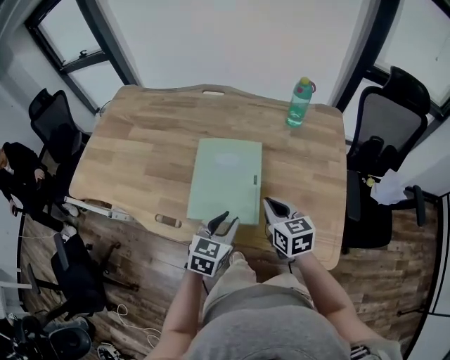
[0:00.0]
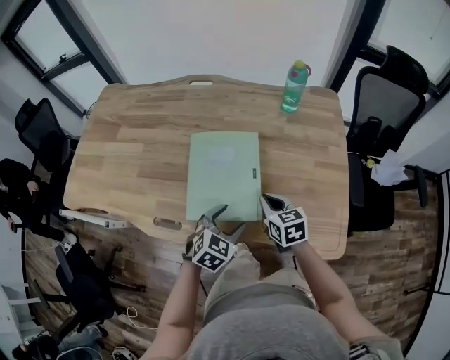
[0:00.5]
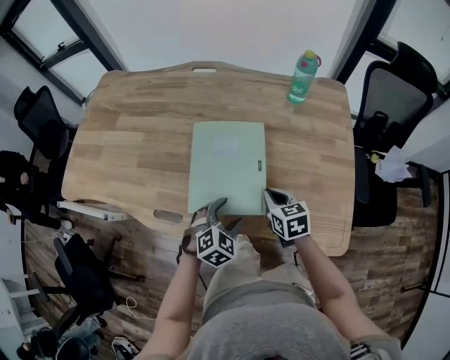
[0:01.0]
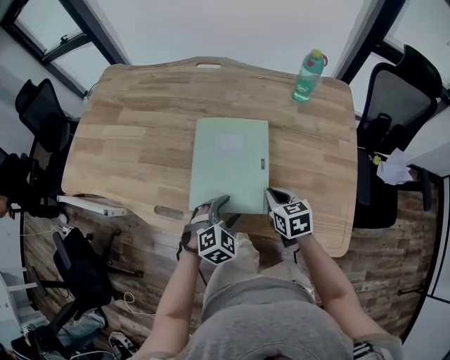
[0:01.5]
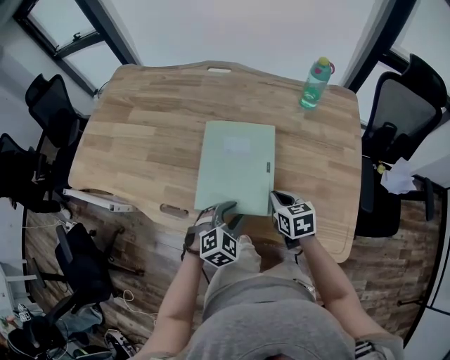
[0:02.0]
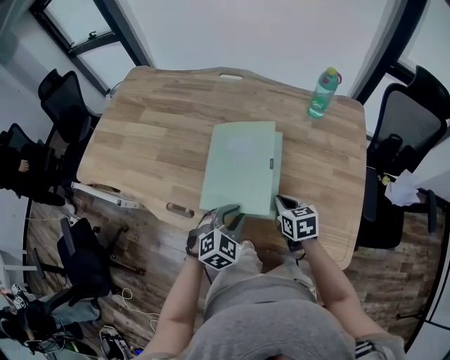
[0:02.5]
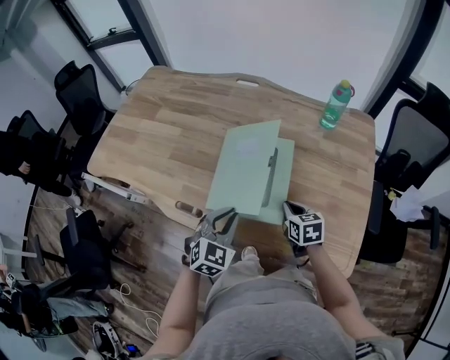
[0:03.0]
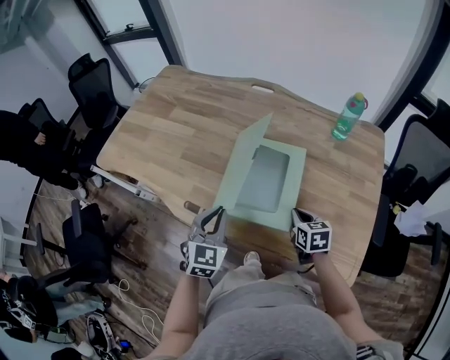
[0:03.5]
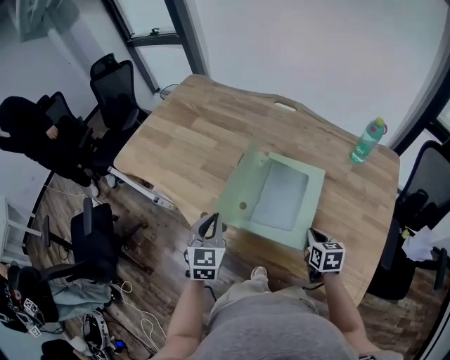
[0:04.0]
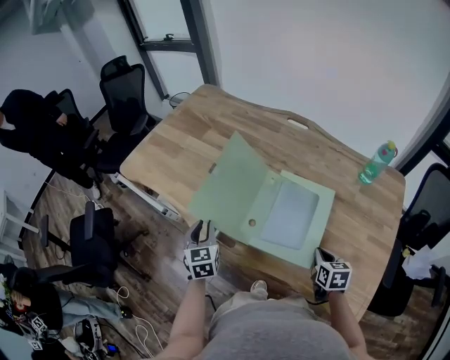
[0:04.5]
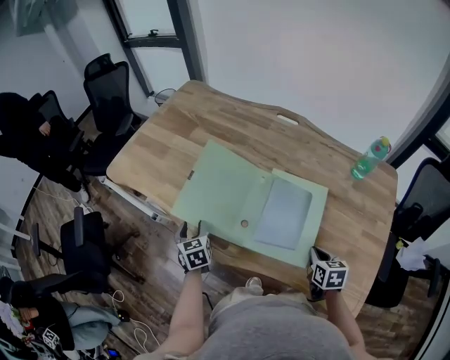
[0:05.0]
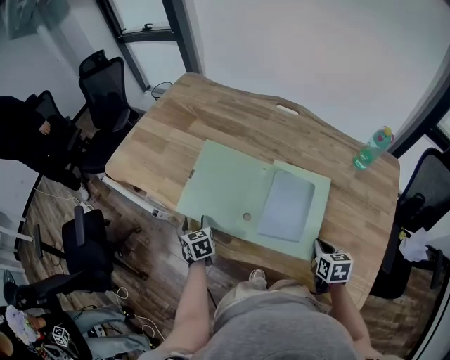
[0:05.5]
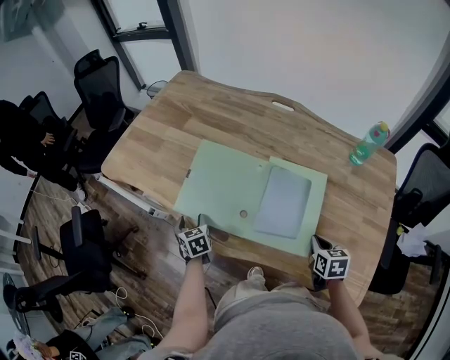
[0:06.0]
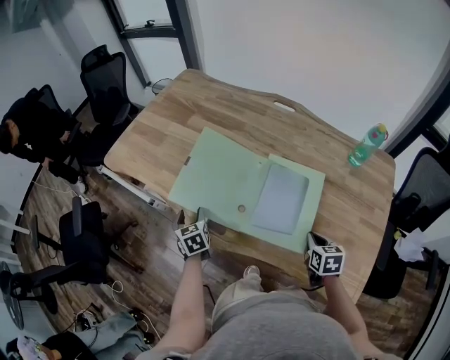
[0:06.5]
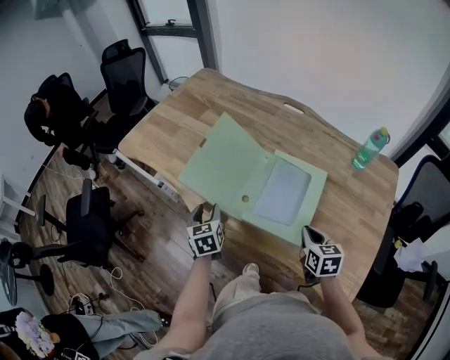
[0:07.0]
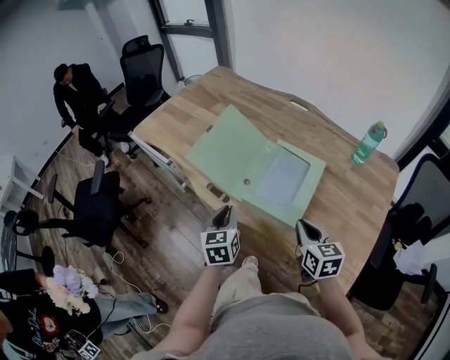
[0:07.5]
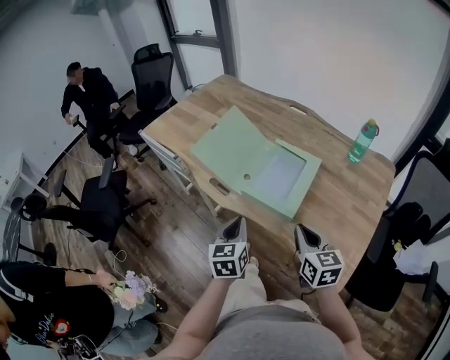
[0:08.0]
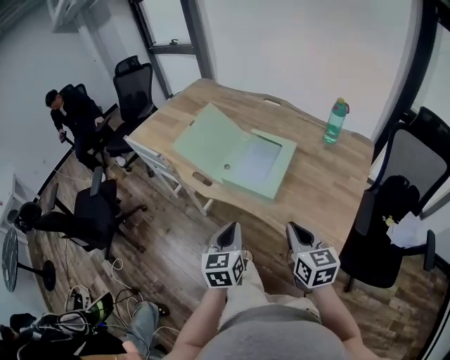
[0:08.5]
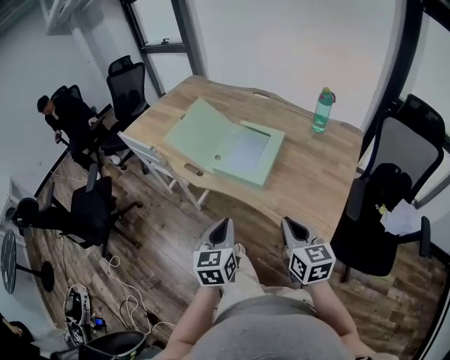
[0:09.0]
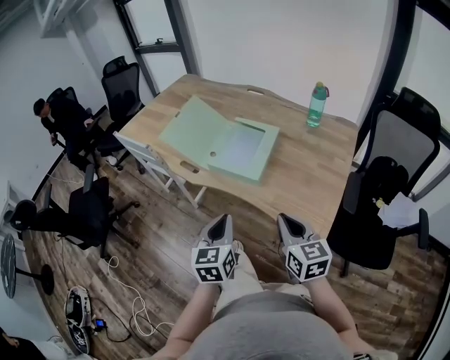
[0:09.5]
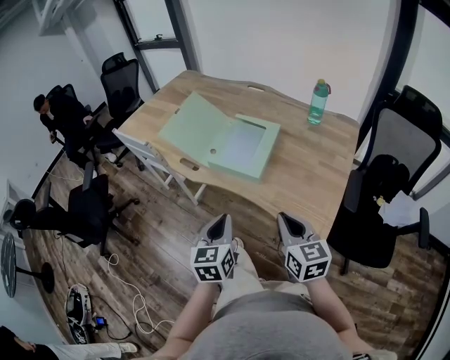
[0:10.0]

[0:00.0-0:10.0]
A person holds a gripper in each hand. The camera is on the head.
0:00.0 to 0:02.0: The two grippers go some 10 cm downward. The left gripper rotates approximately 40 degrees, and opens, then closes again.
0:02.0 to 0:04.0: The left gripper shifts about 20 cm to the left and upward, turns by some 60 degrees, and closes.
0:04.0 to 0:06.0: The left gripper shifts about 25 cm downward, to the left and forward, swivels about 40 degrees, and opens.
0:06.0 to 0:08.0: The right gripper shifts about 20 cm upward, backward and to the left, and changes its angle by roughly 30 degrees. Meanwhile the left gripper shifts some 40 cm backward, upward and to the right, turns by some 30 degrees, and closes its fingers.
0:08.0 to 0:10.0: The right gripper travels backward by approximately 15 cm, while the left gripper moves backward and to the right, some 15 cm.

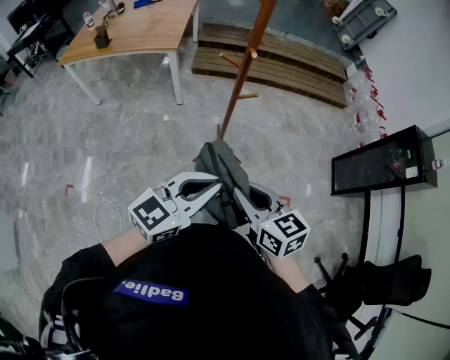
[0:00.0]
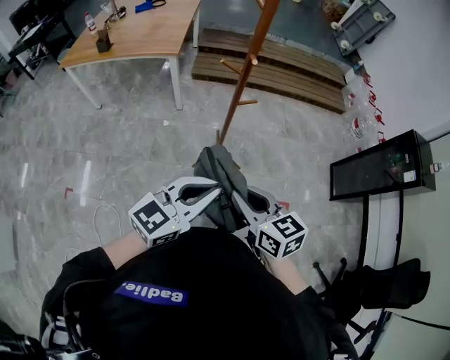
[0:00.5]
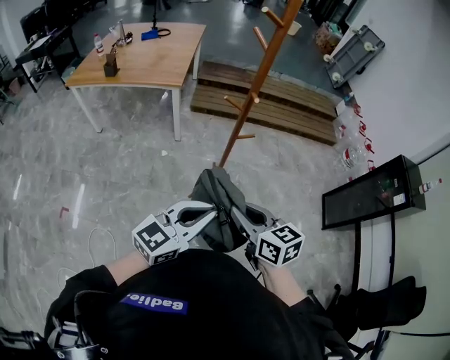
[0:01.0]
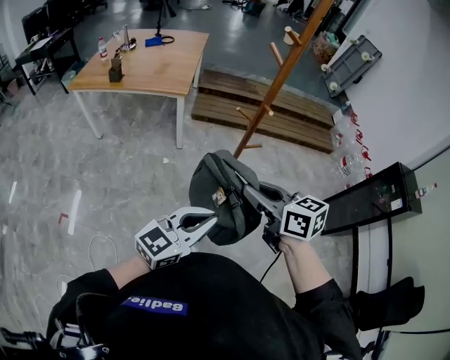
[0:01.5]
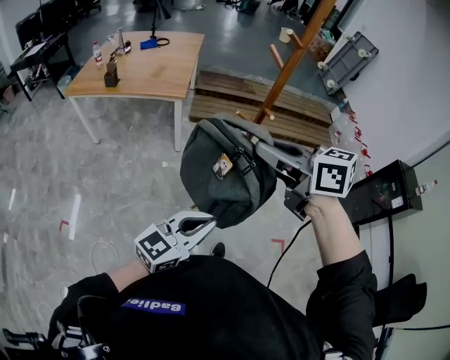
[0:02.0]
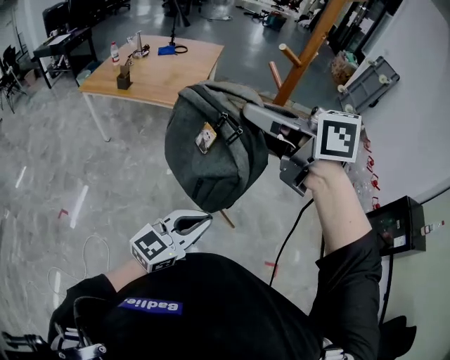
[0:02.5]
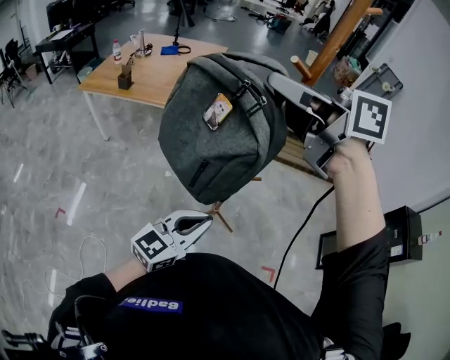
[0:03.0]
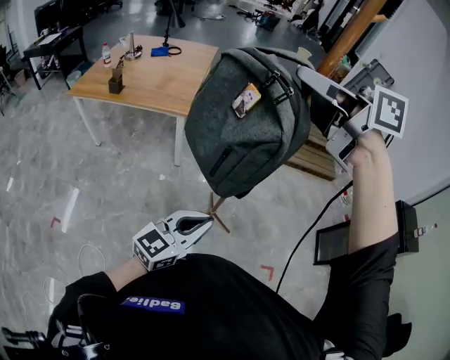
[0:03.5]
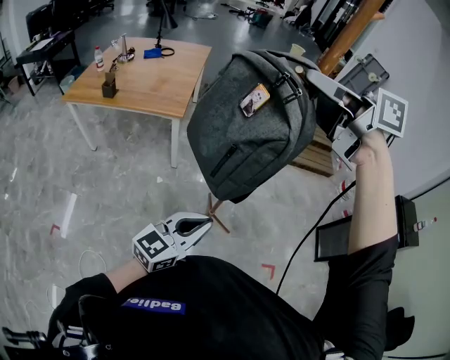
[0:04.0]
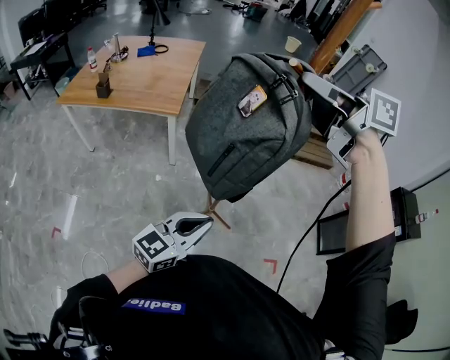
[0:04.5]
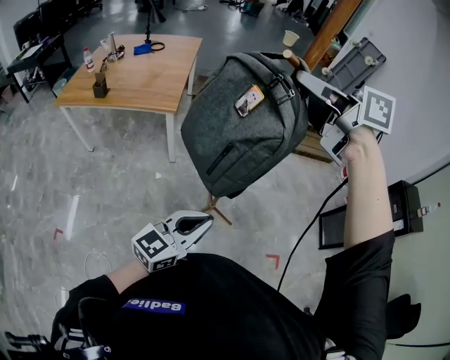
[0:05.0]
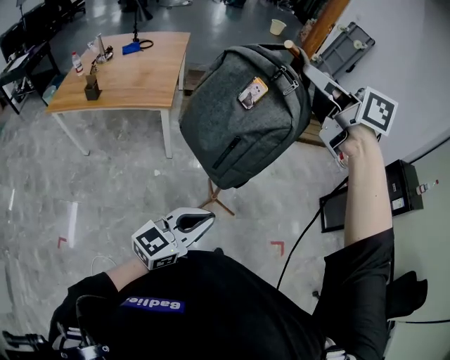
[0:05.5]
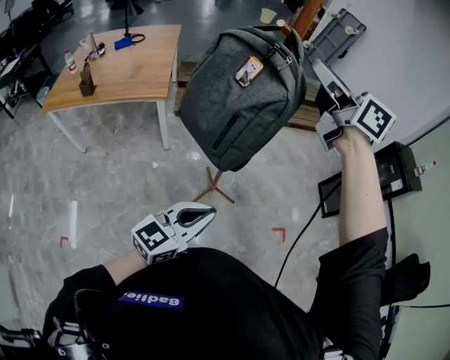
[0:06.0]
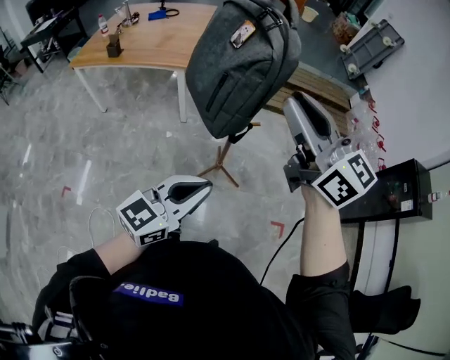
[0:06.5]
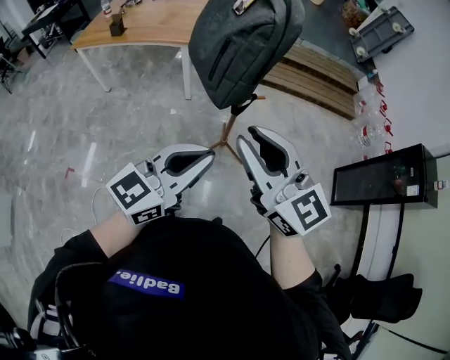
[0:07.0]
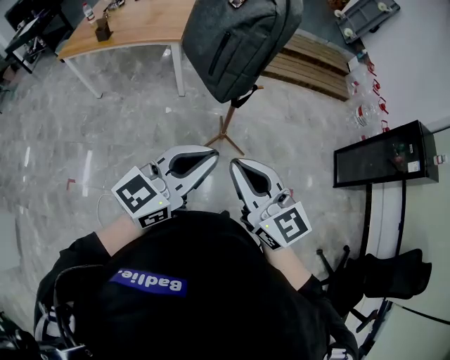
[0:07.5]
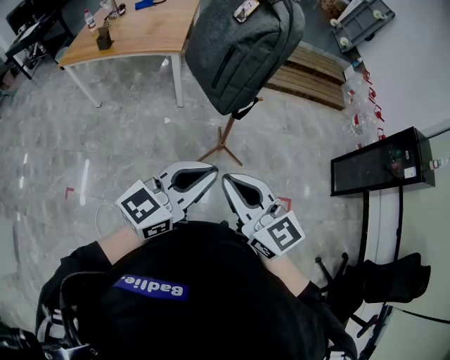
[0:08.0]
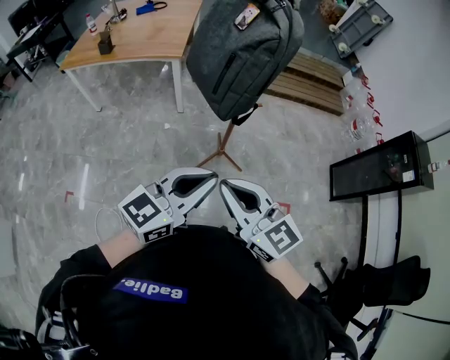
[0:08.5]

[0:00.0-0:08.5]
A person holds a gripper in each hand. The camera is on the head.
0:00.0 to 0:02.0: The left gripper heads to the left, covering some 10 cm. Meanwhile the right gripper travels upward, forward and to the left by roughly 25 cm.
0:02.0 to 0:04.0: The right gripper heads forward, upward and to the right, covering about 25 cm. The left gripper travels forward by some 15 cm.
0:04.0 to 0:06.5: The left gripper moves backward, about 10 cm; the right gripper moves backward and downward, some 20 cm, and swivels about 30 degrees.
0:06.5 to 0:08.5: The right gripper shifts roughly 25 cm backward, downward and to the left, and closes up, while the left gripper ends up roughly 5 cm from where it was.

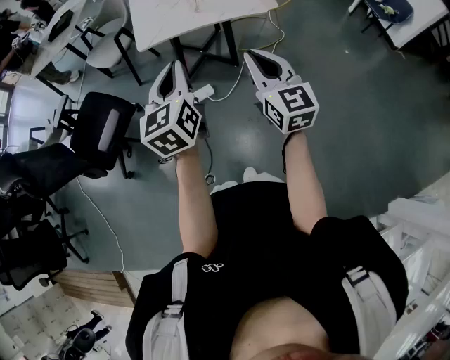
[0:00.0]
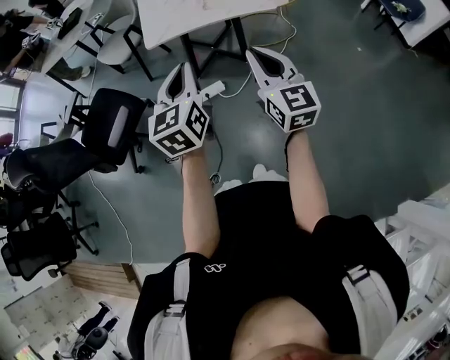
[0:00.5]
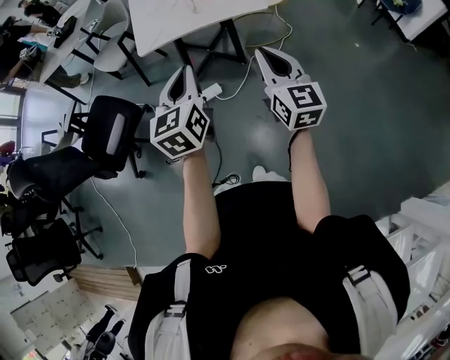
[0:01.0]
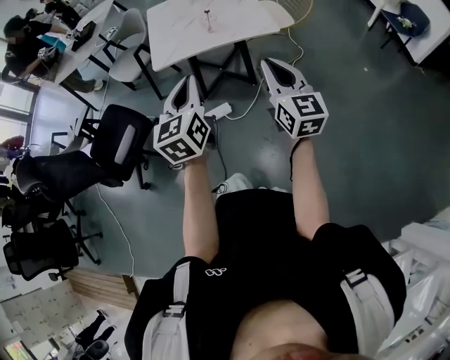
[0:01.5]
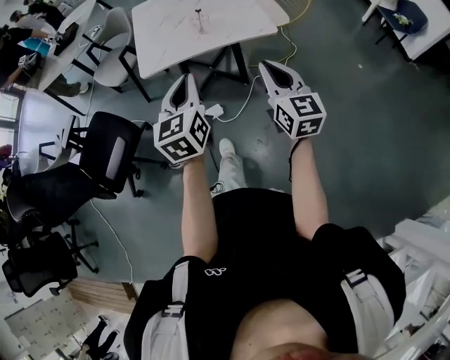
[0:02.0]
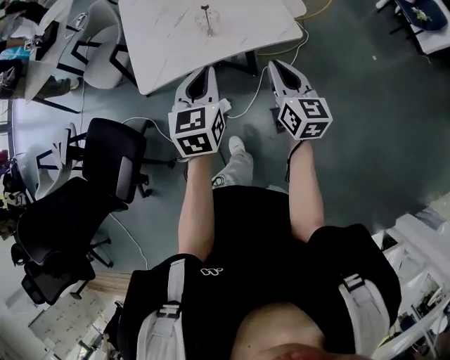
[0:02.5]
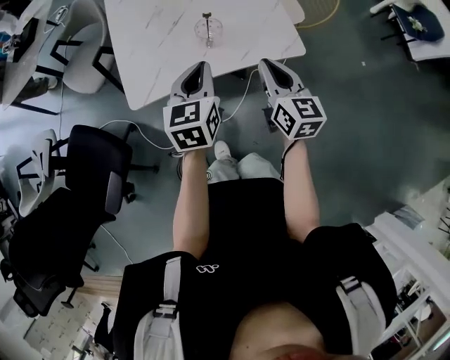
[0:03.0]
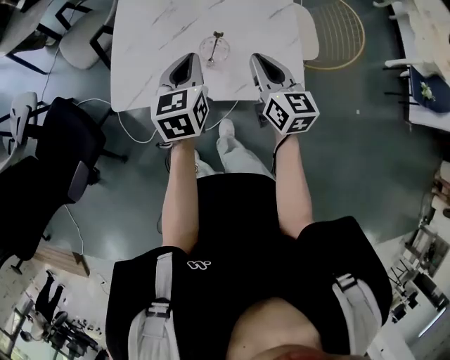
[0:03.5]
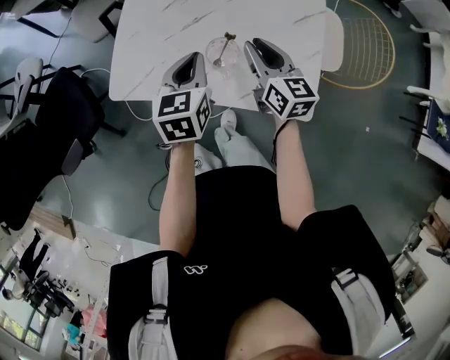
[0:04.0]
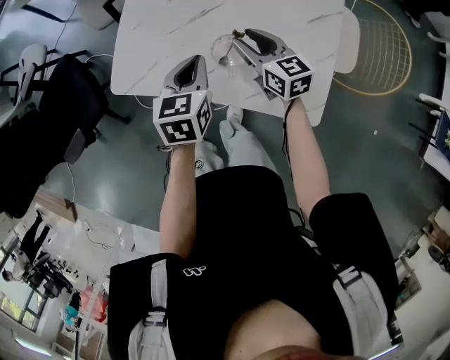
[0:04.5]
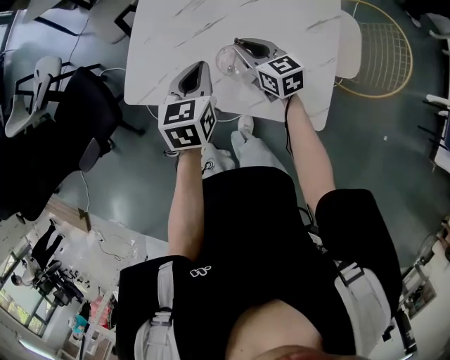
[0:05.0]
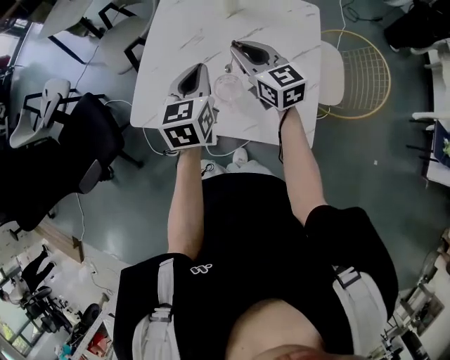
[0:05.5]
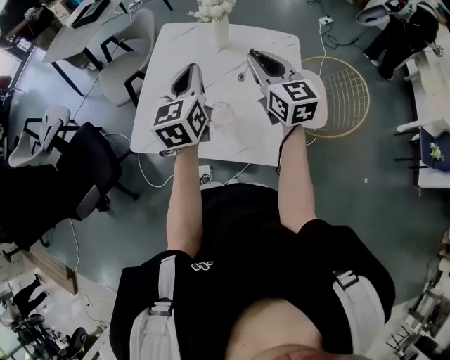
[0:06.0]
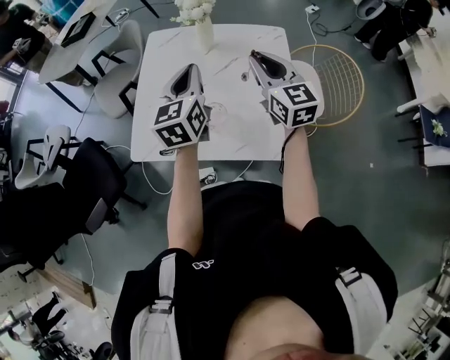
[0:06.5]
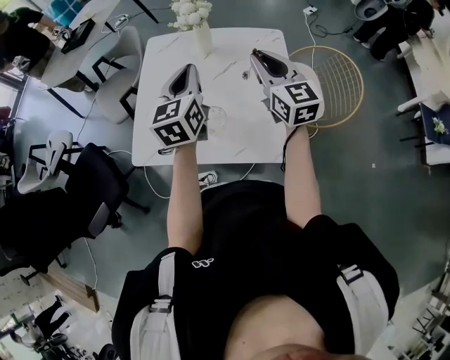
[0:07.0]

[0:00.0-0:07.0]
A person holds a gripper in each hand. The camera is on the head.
0:00.0 to 0:02.0: Both grippers travel together forward and to the right, about 15 cm.
0:02.0 to 0:03.5: Both grippers are carried forward, approximately 40 cm.
0:03.5 to 0:05.0: The left gripper shifts about 5 cm downward. The right gripper travels forward and downward by roughly 20 cm, changes its angle by approximately 30 degrees, and opens, then closes once more.
0:05.0 to 0:07.0: The left gripper shifts some 20 cm upward, and rotates approximately 30 degrees; the right gripper shifts about 30 cm upward and to the right, and turns by approximately 30 degrees.

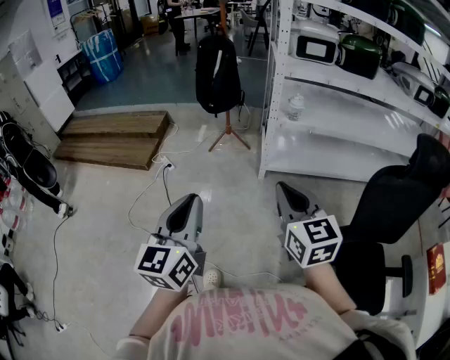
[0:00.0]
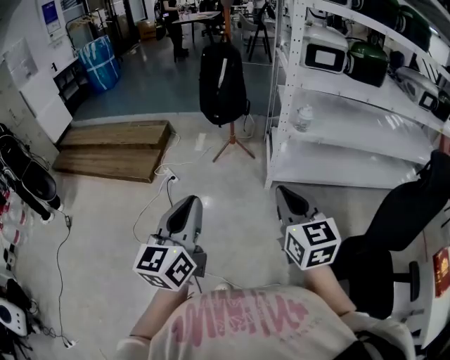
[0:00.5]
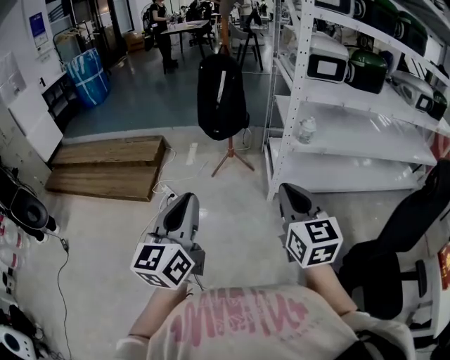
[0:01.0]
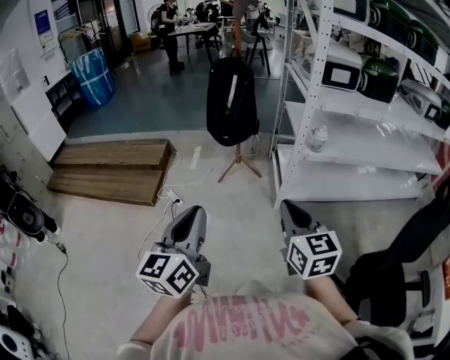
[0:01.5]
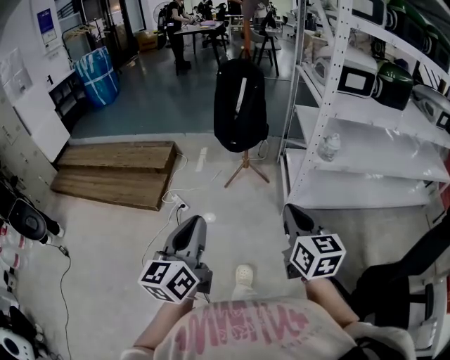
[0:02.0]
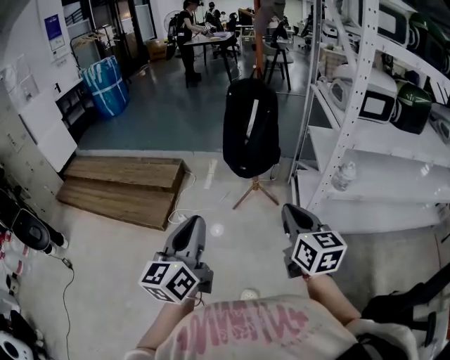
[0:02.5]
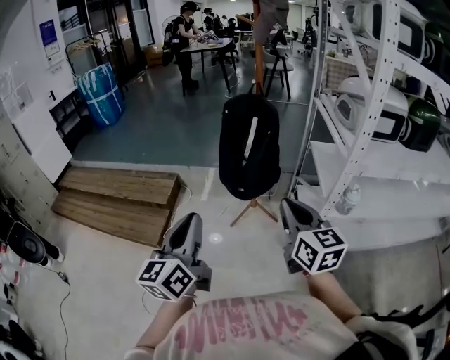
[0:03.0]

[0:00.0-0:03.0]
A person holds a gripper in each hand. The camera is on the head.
0:00.0 to 0:01.5: The two grippers go some 25 cm forward and to the left.
0:01.5 to 0:03.0: The grippers both shift forward by approximately 35 cm.
